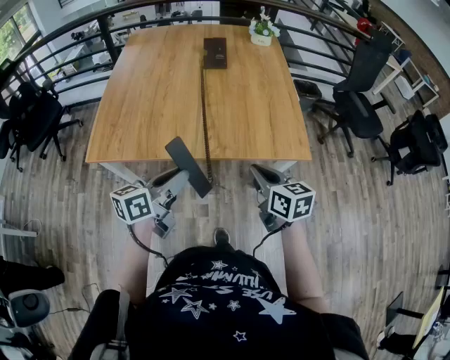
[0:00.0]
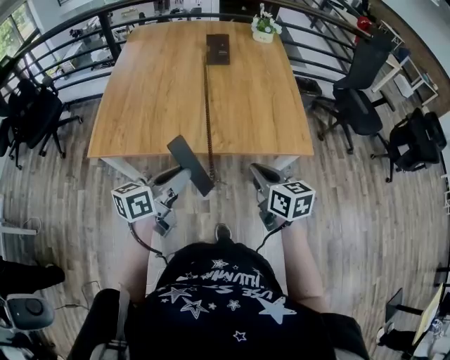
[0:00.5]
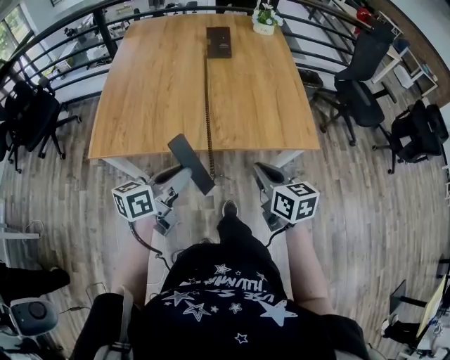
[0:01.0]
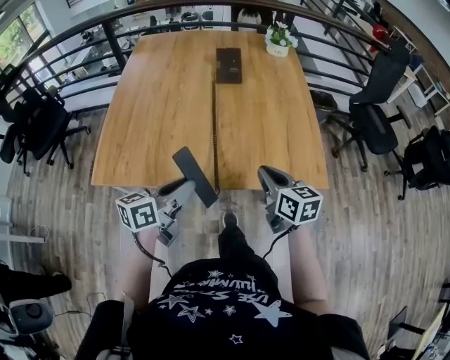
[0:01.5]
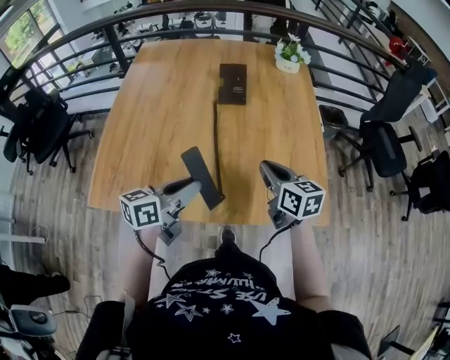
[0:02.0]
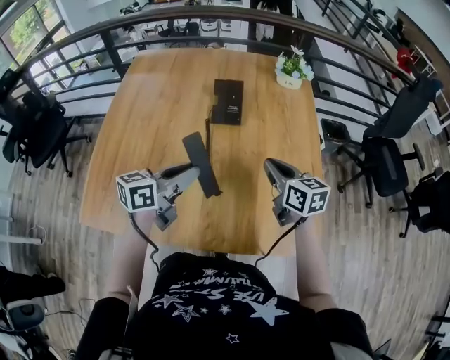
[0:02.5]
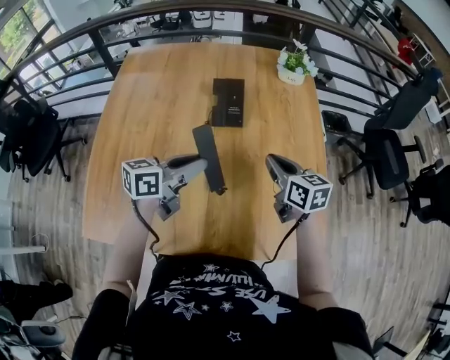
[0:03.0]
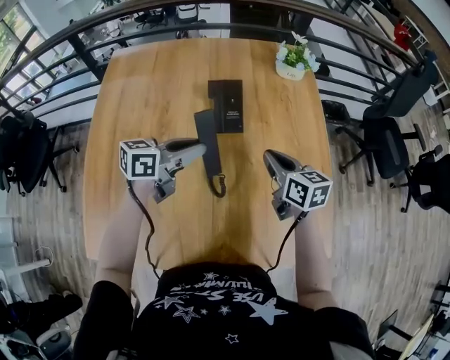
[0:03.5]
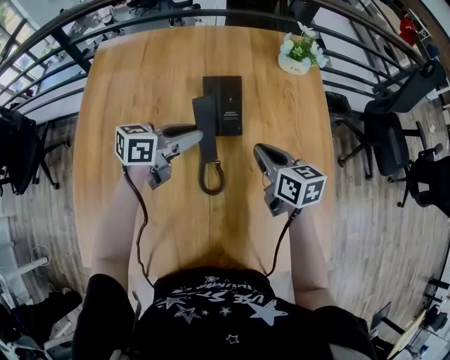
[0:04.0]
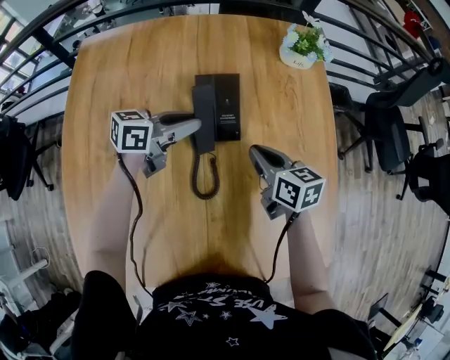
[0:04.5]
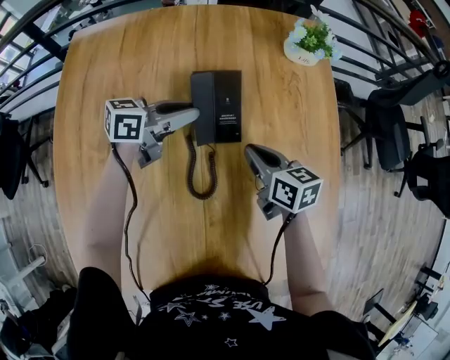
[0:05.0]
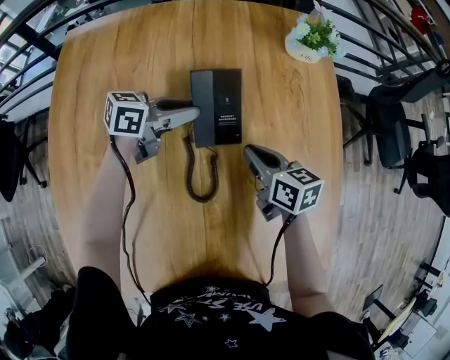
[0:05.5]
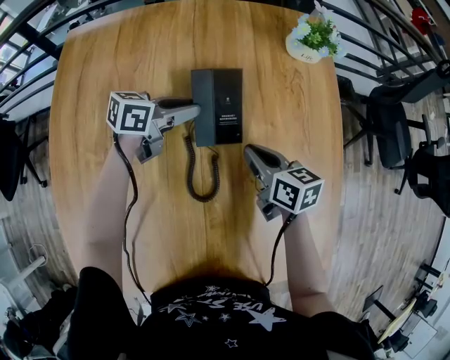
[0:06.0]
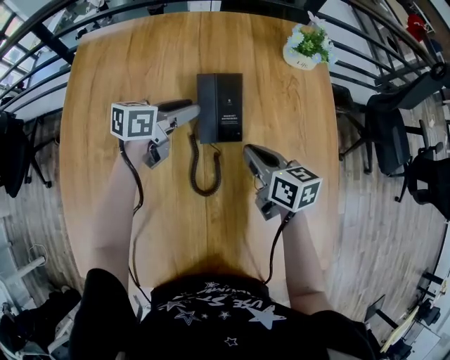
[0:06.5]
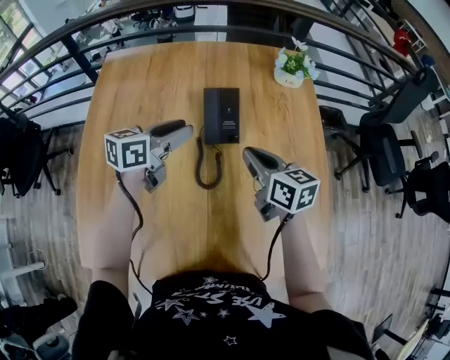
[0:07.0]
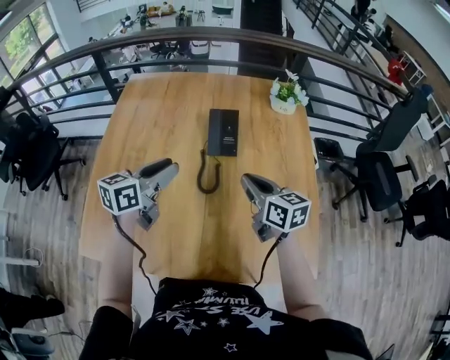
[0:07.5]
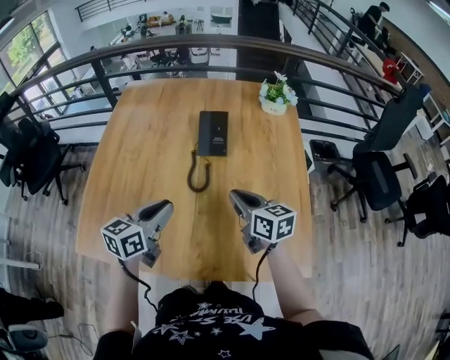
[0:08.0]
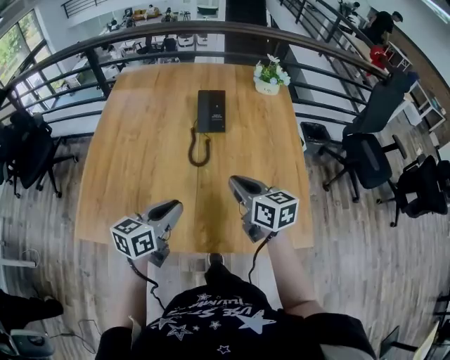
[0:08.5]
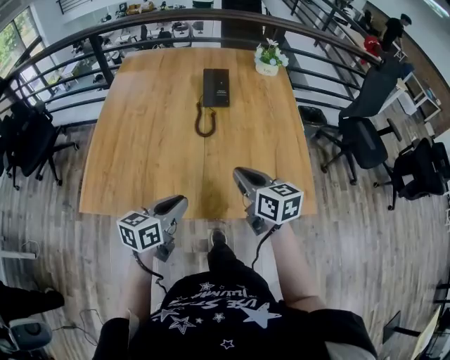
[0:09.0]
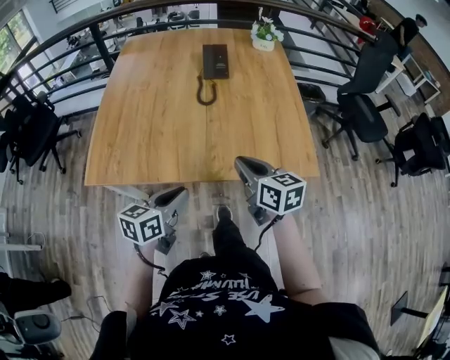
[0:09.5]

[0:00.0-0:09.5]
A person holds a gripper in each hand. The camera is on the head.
0:00.0 to 0:02.0: Both grippers travel together forward, some 25 cm.
0:02.0 to 0:04.0: The grippers both shift forward by some 30 cm.
0:04.0 to 0:05.5: The right gripper moves downward, some 5 cm, while the left gripper moves forward and downward, about 15 cm.
0:05.5 to 0:07.5: The right gripper travels upward and backward by some 20 cm; the left gripper heads backward and upward, covering roughly 30 cm, and turns by approximately 40 degrees.
0:07.5 to 0:09.5: Both grippers travel together backward, about 35 cm. The left gripper closes up.

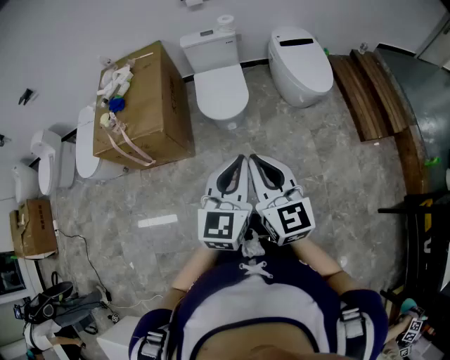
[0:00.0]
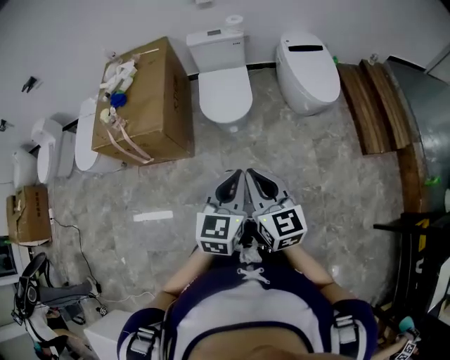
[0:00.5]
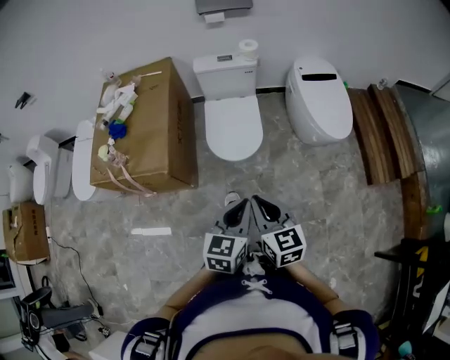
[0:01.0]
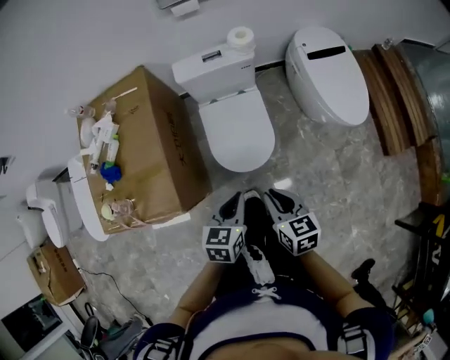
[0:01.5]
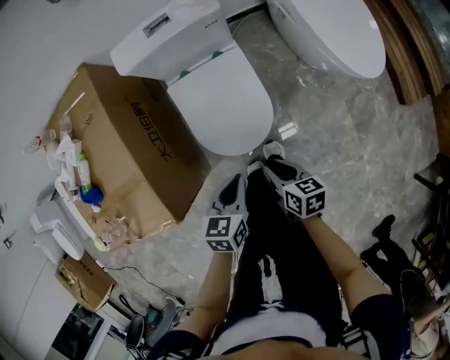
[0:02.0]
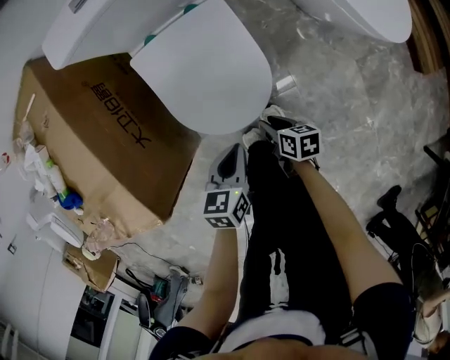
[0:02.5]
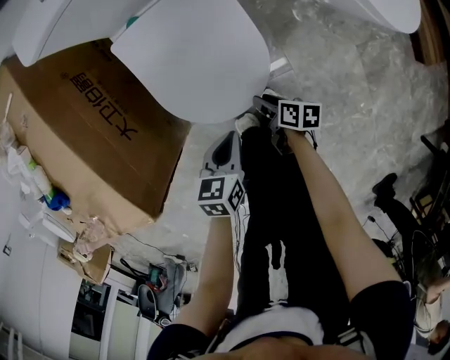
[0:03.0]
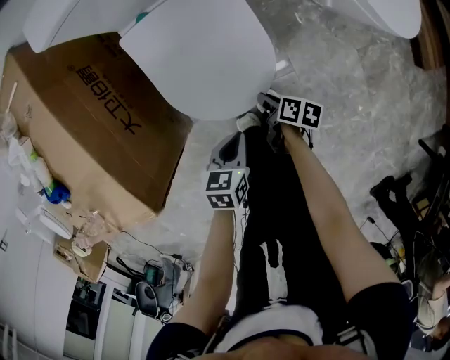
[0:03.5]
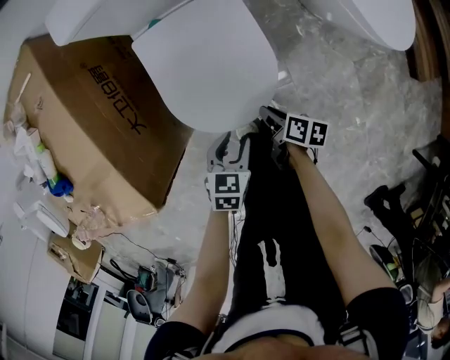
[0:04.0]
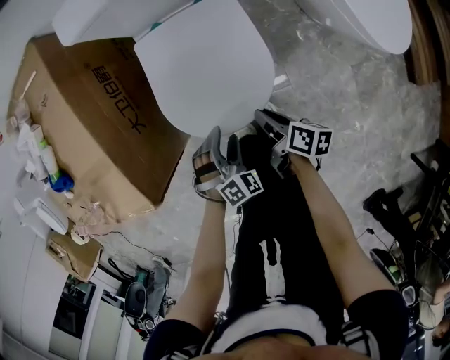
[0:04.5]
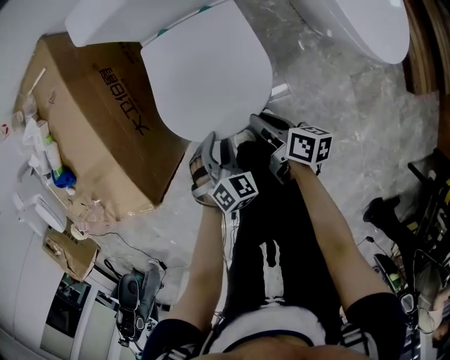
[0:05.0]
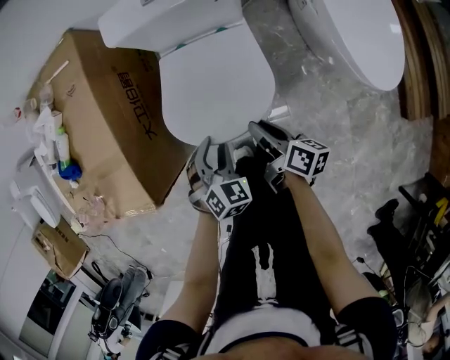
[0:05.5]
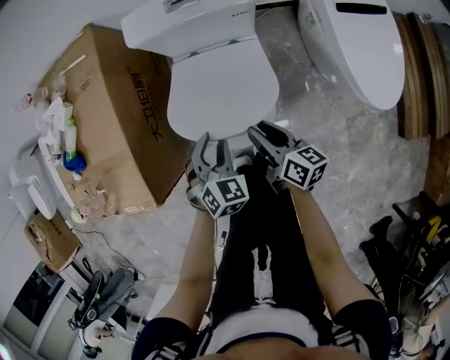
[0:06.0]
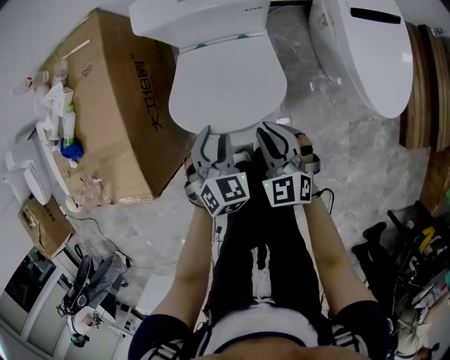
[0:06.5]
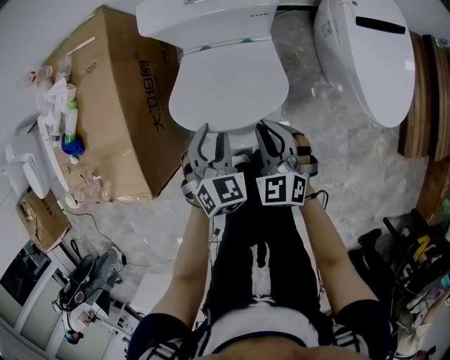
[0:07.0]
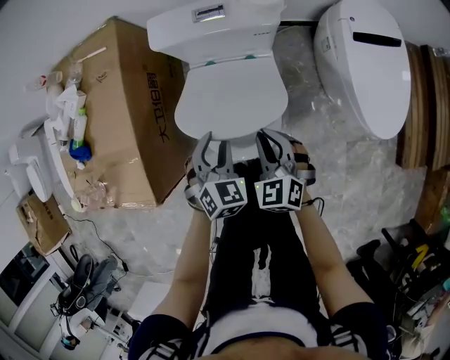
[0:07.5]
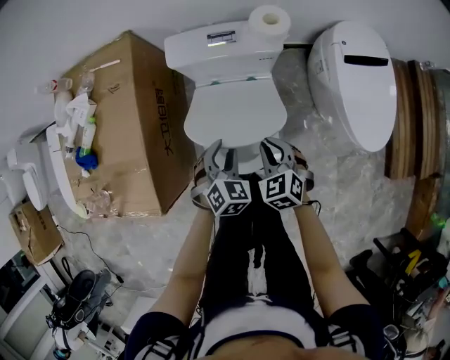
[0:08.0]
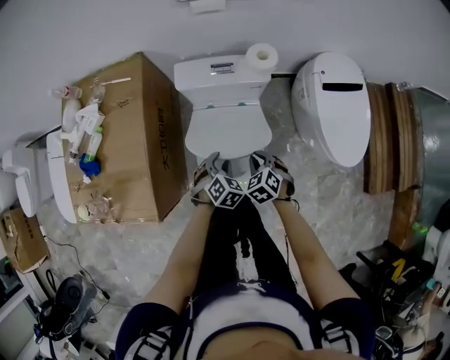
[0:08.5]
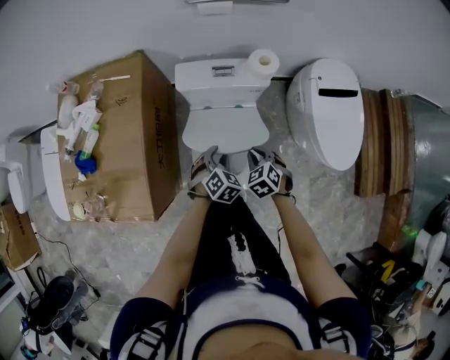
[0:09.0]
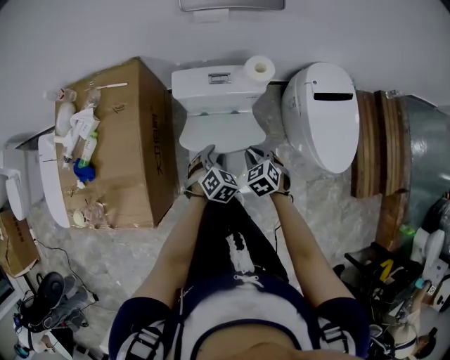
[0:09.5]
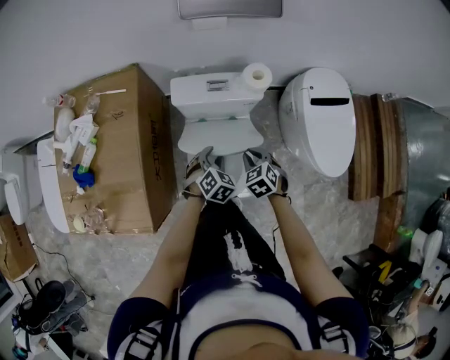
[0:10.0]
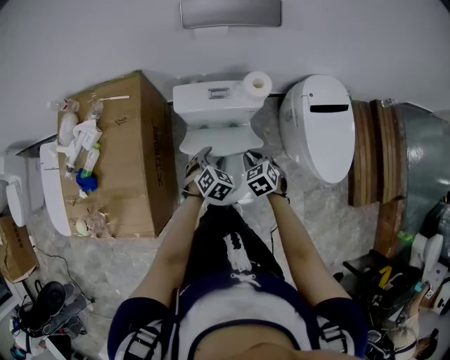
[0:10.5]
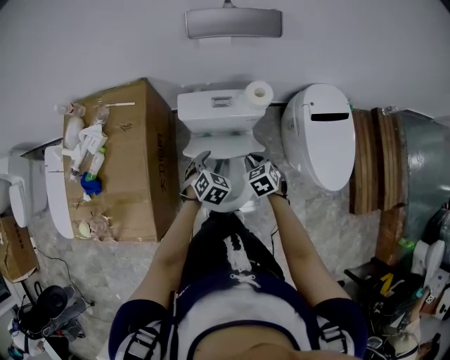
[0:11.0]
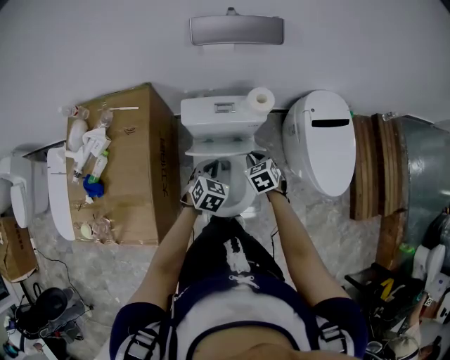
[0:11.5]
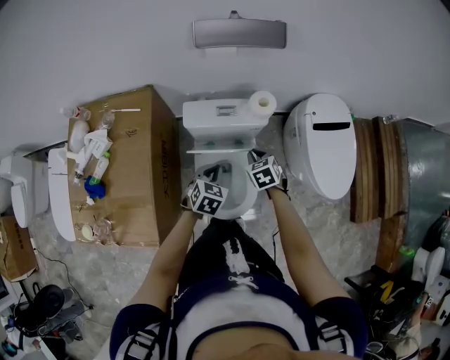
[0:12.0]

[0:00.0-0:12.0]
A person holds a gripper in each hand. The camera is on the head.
0:00.0 to 0:02.0: The two grippers travel together, forward, about 50 cm. The two grippers go some 40 cm downward. The right gripper tilts its fingers about 40 degrees downward, while the left gripper tips its fingers downward by about 30 degrees.
0:02.0 to 0:04.0: The grippers both shift downward by some 20 cm. The left gripper opens. The right gripper changes its angle by about 30 degrees.
0:04.0 to 0:06.0: The grippers both shift upward and forward by roughly 20 cm. The right gripper swivels some 40 degrees. The left gripper turns by about 40 degrees.
0:06.0 to 0:08.0: The right gripper ends up some 5 cm from where it was, and rolls counterclockwise, seen from behind, by some 70 degrees; the left gripper travels forward by some 5 cm.
0:08.0 to 0:10.0: Both grippers travel together forward, about 5 cm.
0:10.0 to 0:12.0: The left gripper shifts roughly 5 cm upward, and closes its fingers. Meanwhile the right gripper heads forward, covering approximately 10 cm.

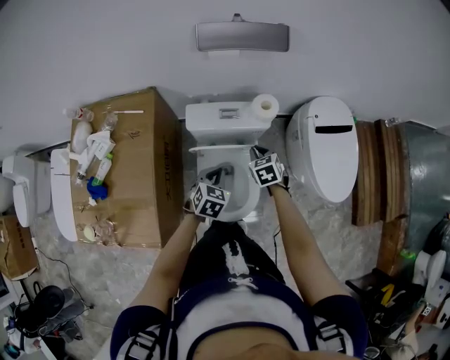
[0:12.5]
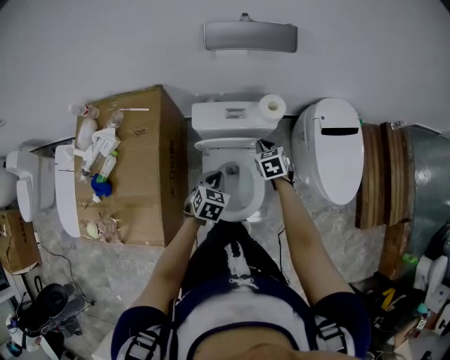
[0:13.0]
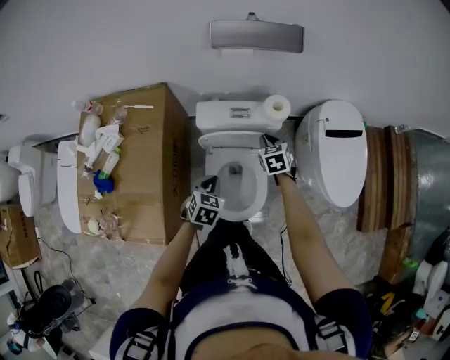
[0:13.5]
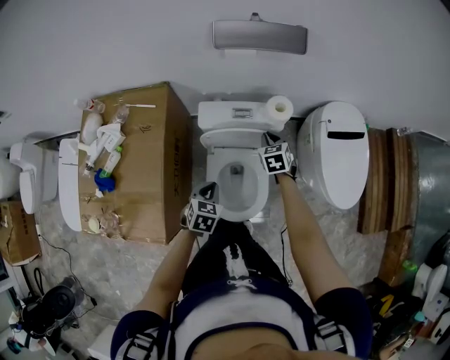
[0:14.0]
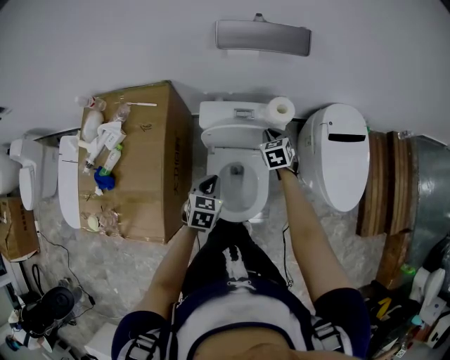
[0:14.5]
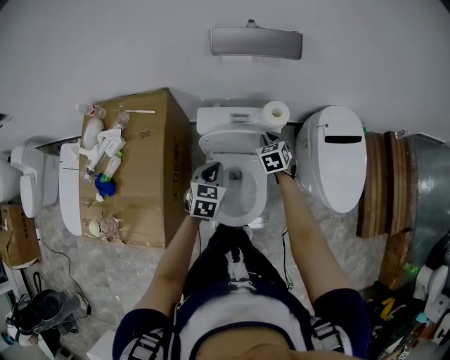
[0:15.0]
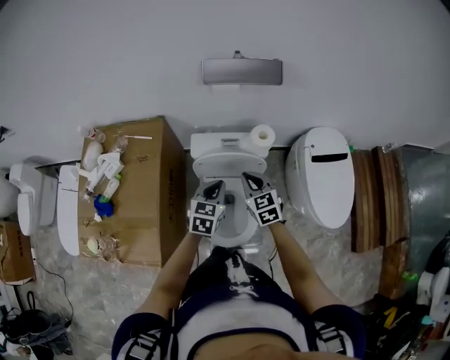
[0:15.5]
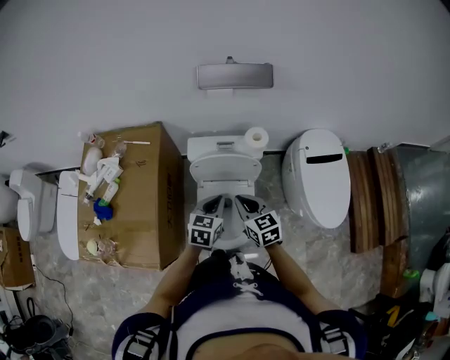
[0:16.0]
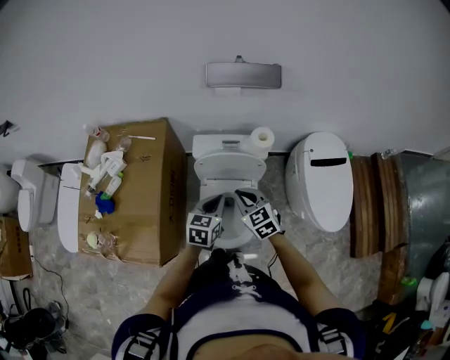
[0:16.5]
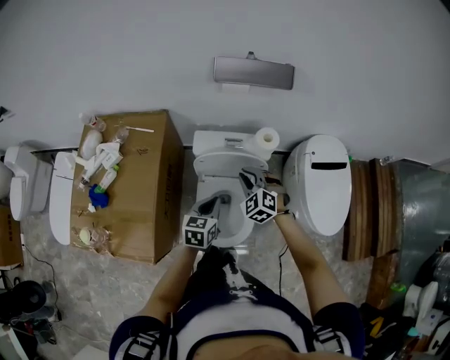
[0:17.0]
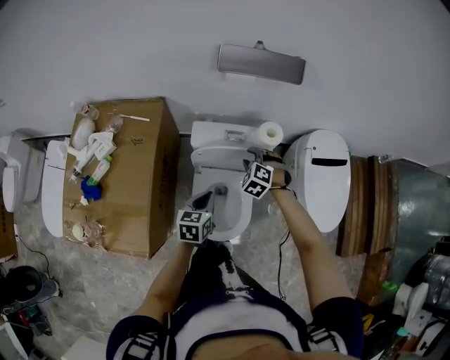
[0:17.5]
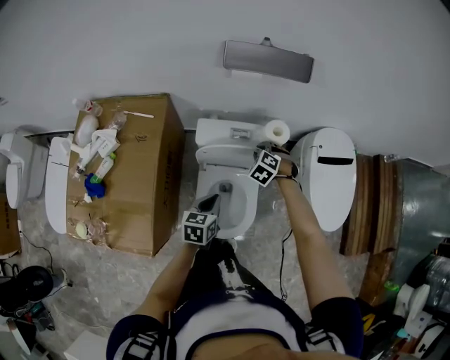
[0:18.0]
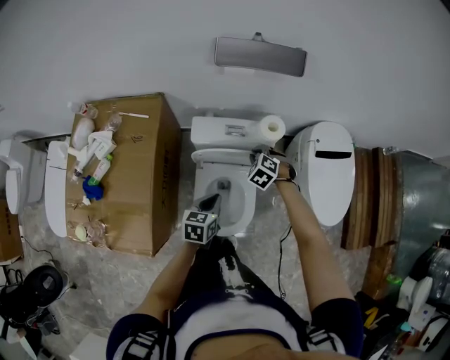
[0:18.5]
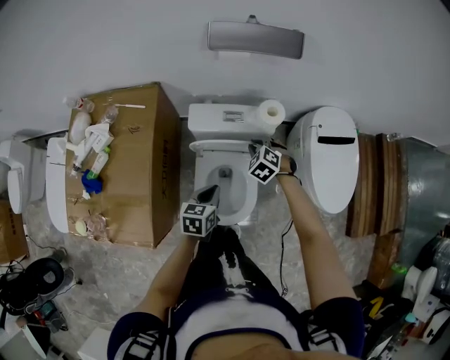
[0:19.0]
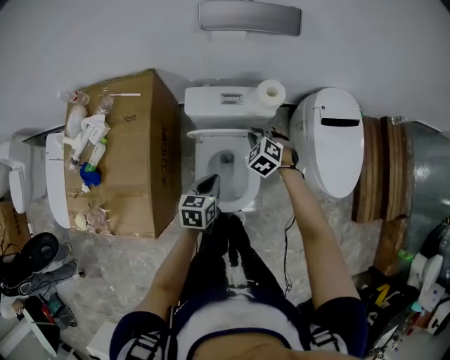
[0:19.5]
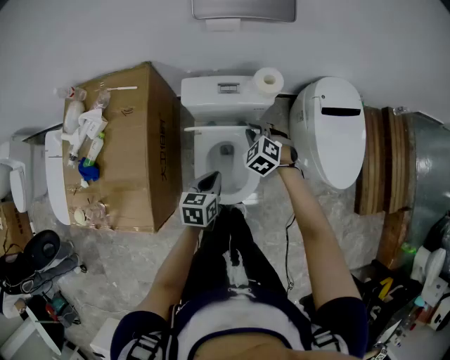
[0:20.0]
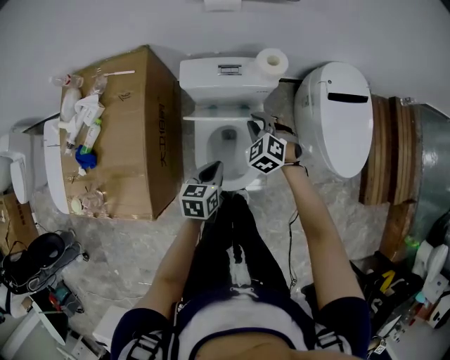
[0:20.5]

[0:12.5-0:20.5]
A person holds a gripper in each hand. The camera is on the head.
0:12.5 to 0:14.5: The right gripper heads forward, covering about 10 cm. The left gripper heads to the left, covering about 5 cm.
0:14.5 to 0:16.5: The right gripper moves backward and upward, approximately 20 cm, and swivels some 30 degrees. The left gripper goes roughly 10 cm upward and to the right.
0:16.5 to 0:18.5: The left gripper moves downward, some 5 cm. The right gripper is displaced forward and downward by some 20 cm, and rotates roughly 40 degrees.
0:18.5 to 0:20.5: Both grippers travel together backward, roughly 5 cm.
